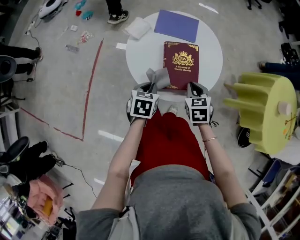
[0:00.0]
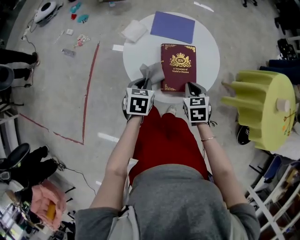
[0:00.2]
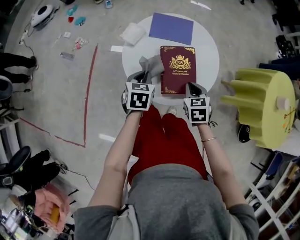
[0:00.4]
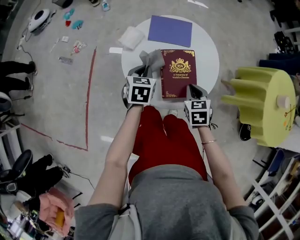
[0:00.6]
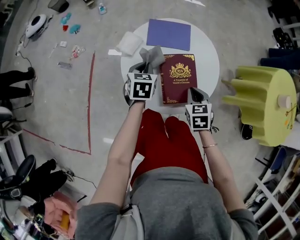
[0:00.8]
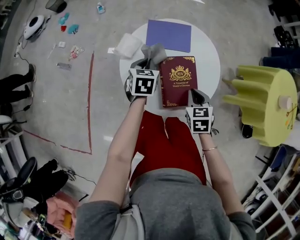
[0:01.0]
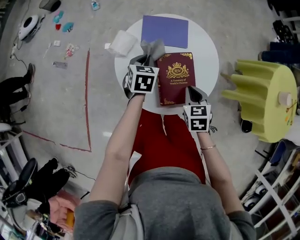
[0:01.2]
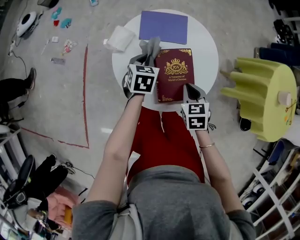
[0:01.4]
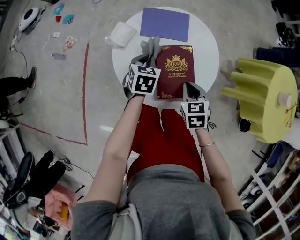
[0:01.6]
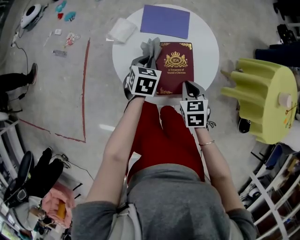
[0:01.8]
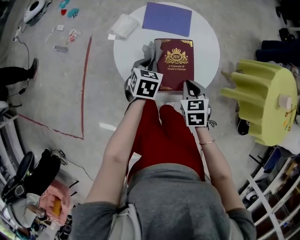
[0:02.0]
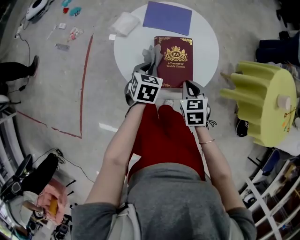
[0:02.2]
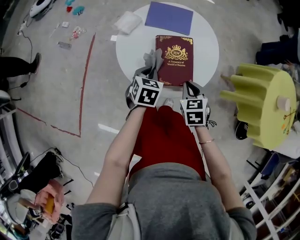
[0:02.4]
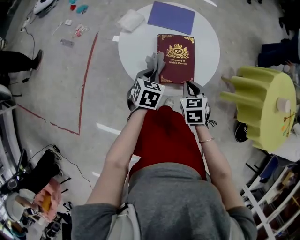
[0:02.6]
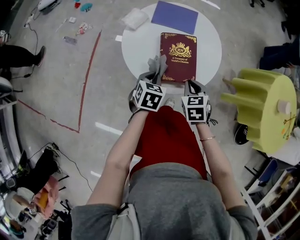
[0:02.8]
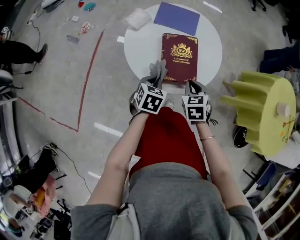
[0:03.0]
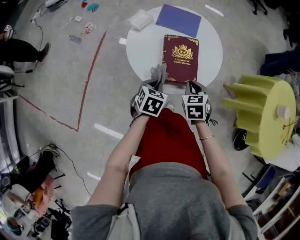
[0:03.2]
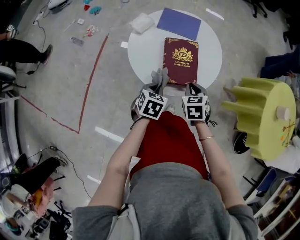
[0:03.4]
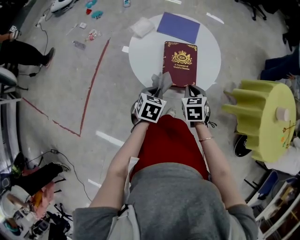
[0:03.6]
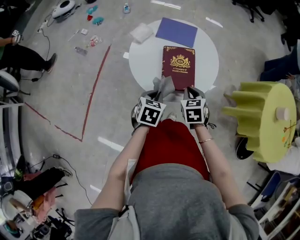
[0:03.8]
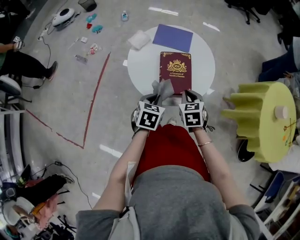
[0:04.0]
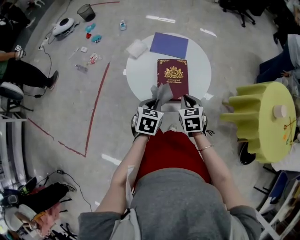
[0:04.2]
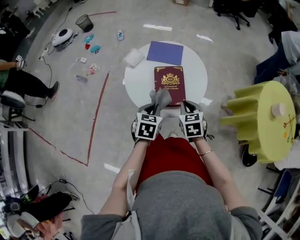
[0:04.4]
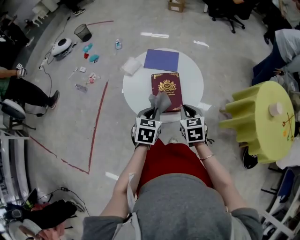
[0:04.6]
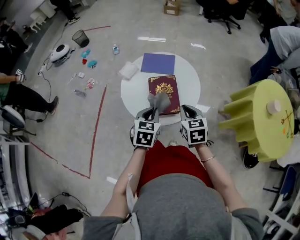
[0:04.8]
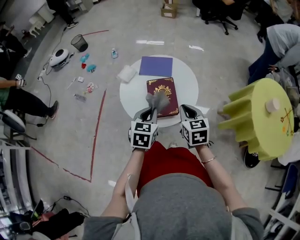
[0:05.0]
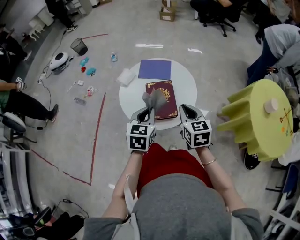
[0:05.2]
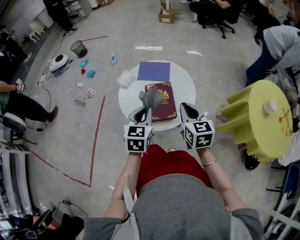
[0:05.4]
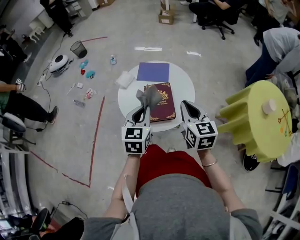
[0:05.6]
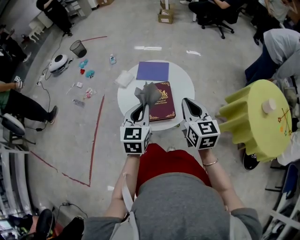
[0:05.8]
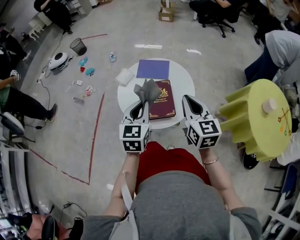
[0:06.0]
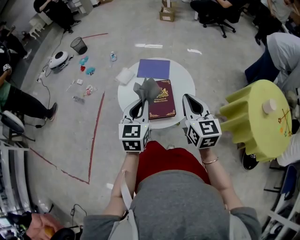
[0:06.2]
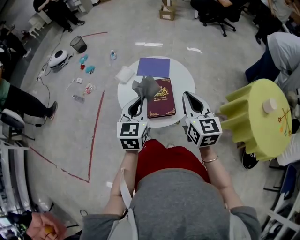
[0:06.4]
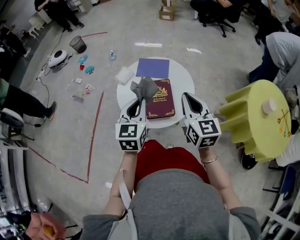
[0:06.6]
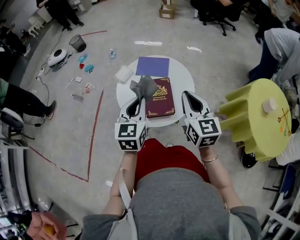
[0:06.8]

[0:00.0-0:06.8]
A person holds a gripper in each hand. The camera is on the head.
0.0 to 1.4 s: The left gripper travels forward by approximately 20 cm.
1.4 to 2.8 s: The left gripper shifts approximately 20 cm backward. The right gripper moves backward, about 5 cm.
2.8 to 4.0 s: The left gripper is displaced upward by approximately 5 cm.
4.0 to 5.4 s: Both grippers move upward, roughly 15 cm. The right gripper turns by about 30 degrees; the left gripper swivels approximately 20 degrees.
5.4 to 6.8 s: The right gripper moves upward, some 5 cm.

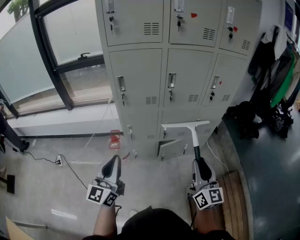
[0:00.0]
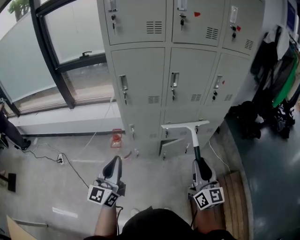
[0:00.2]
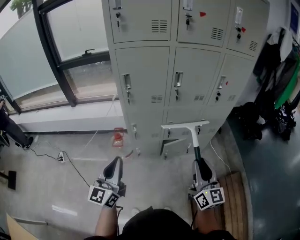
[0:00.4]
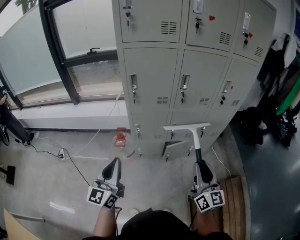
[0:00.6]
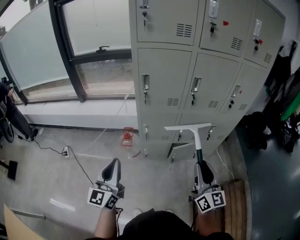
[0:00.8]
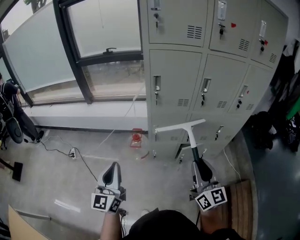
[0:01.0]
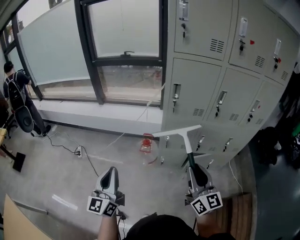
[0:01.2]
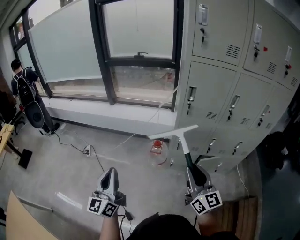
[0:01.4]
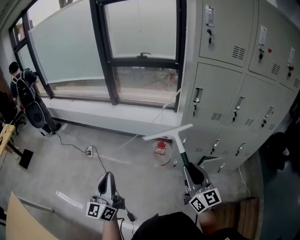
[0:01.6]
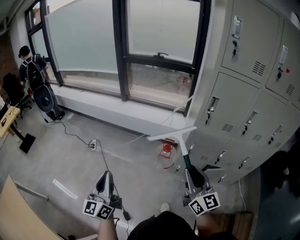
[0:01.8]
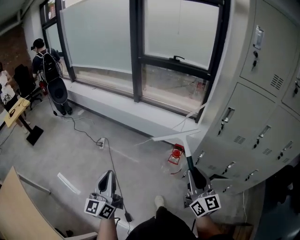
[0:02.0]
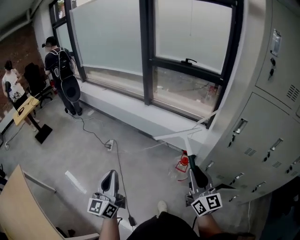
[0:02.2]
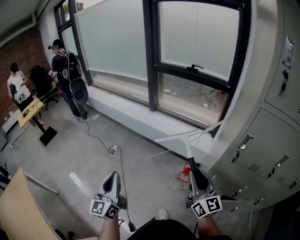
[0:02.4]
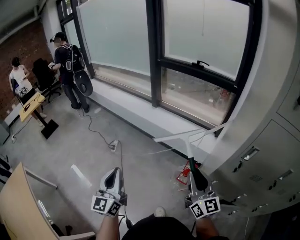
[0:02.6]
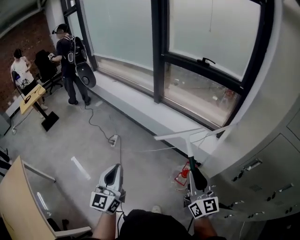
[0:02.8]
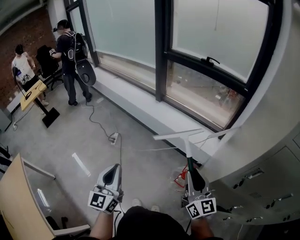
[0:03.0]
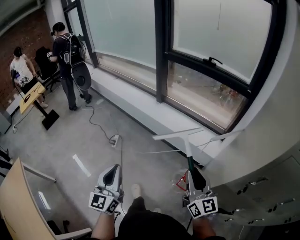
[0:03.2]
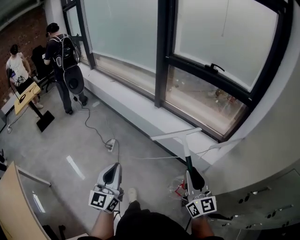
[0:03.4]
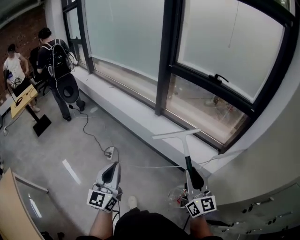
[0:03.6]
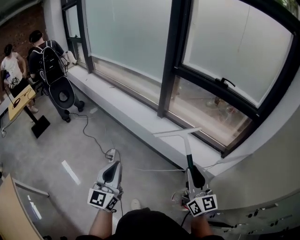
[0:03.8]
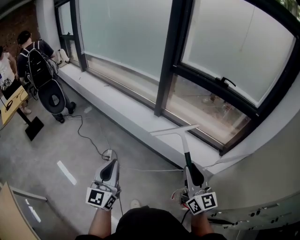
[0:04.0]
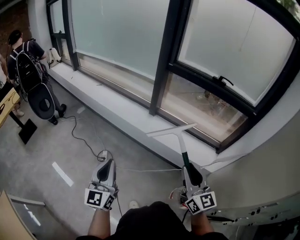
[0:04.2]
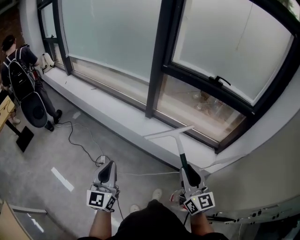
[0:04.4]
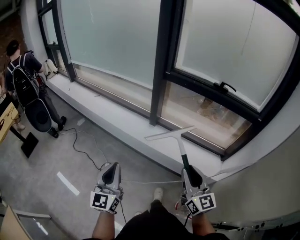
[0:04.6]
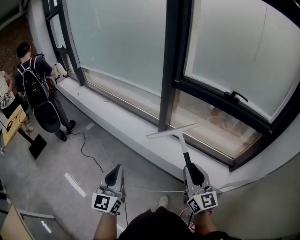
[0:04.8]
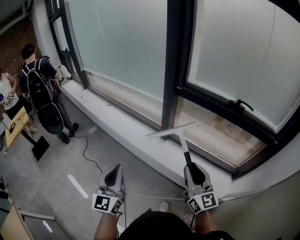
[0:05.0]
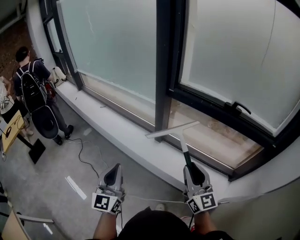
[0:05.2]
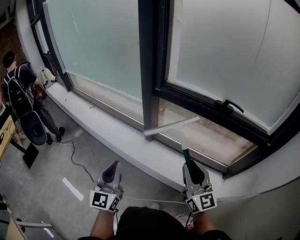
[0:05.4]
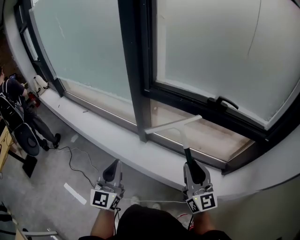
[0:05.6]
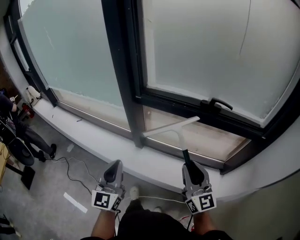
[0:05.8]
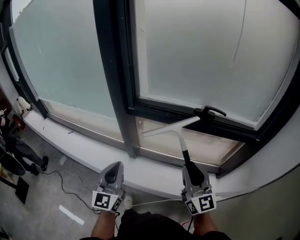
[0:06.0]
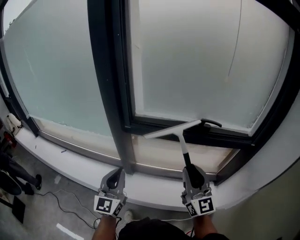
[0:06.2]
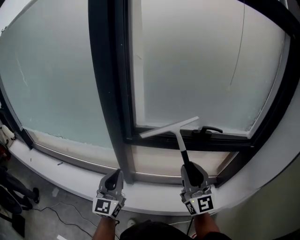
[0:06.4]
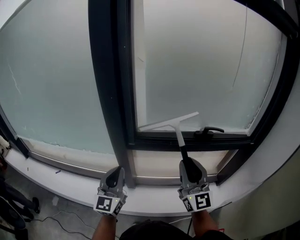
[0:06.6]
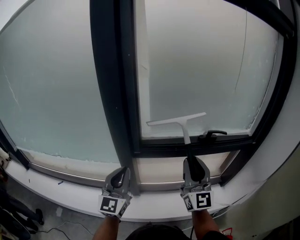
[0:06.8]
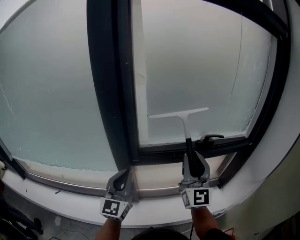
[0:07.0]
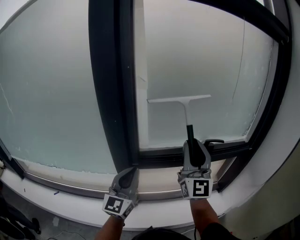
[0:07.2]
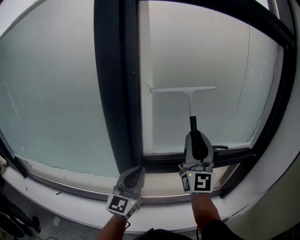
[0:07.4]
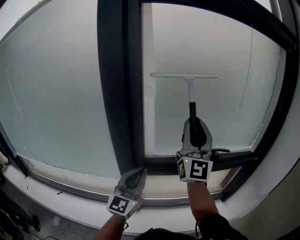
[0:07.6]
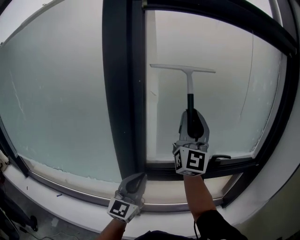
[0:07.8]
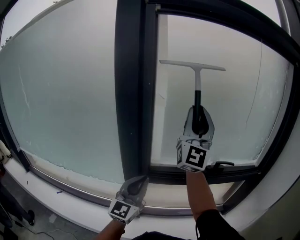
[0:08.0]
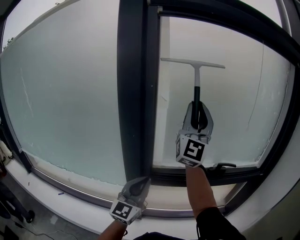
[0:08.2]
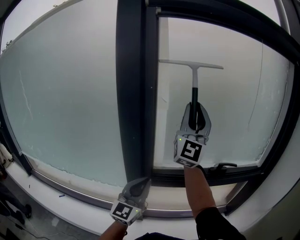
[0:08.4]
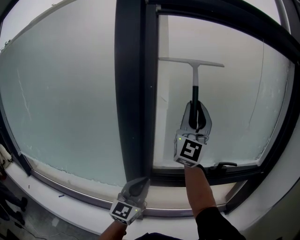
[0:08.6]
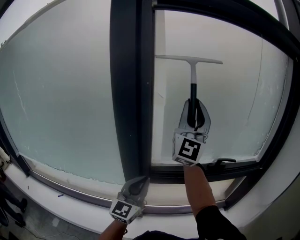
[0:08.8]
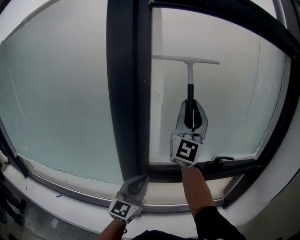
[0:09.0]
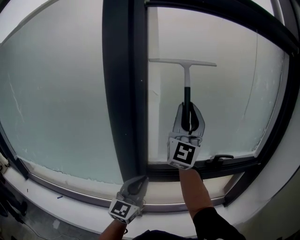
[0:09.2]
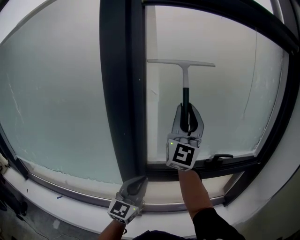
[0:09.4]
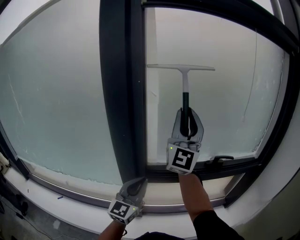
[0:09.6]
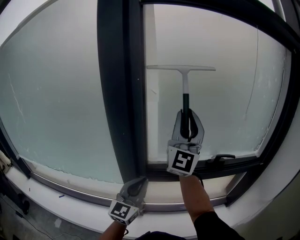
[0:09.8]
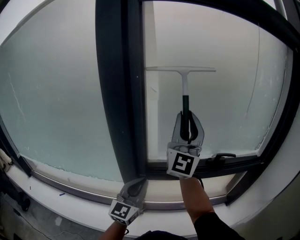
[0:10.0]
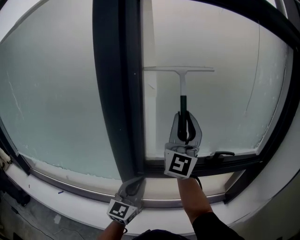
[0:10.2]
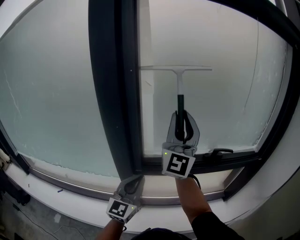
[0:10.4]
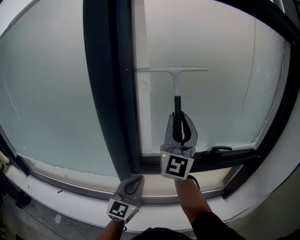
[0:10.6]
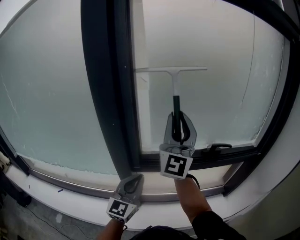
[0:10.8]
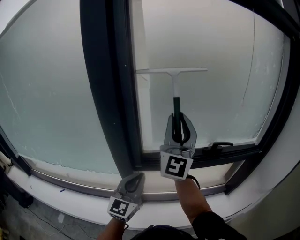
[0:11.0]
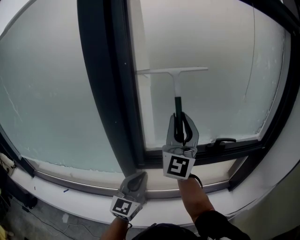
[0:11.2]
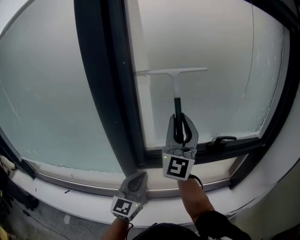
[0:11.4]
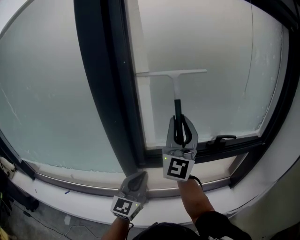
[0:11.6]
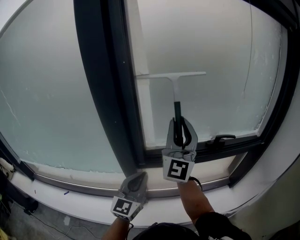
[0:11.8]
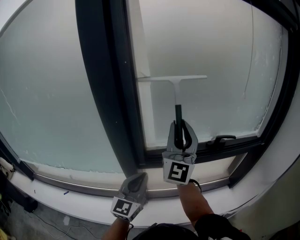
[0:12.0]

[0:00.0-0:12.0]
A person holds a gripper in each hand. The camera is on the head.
0.0 to 1.6 s: The left gripper changes place by about 30 cm, and rotates about 30 degrees, while the right gripper shifts by some 35 cm, and rotates approximately 30 degrees.
1.6 to 3.0 s: The two grippers go some 30 cm forward. The left gripper changes its angle by approximately 30 degrees.
3.0 to 4.4 s: The two grippers go approximately 35 cm forward and to the left.
4.4 to 6.0 s: The two grippers go approximately 40 cm forward and to the right.
6.0 to 7.6 s: The right gripper is displaced upward by some 30 cm, and tips its fingers upward by about 30 degrees. The left gripper changes place by roughly 25 cm, and rotates about 30 degrees.
7.6 to 9.0 s: The right gripper moves upward, some 5 cm.
9.0 to 10.4 s: The right gripper moves downward, some 5 cm.
10.4 to 12.0 s: The right gripper travels downward by approximately 5 cm.

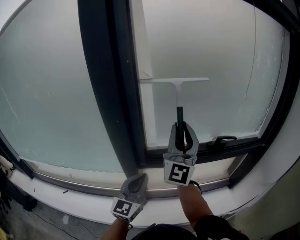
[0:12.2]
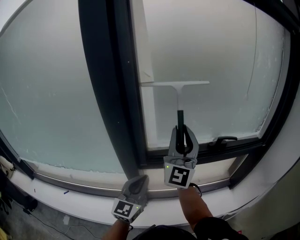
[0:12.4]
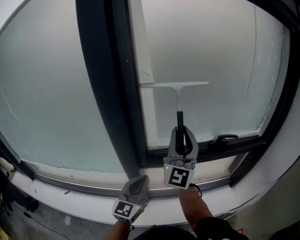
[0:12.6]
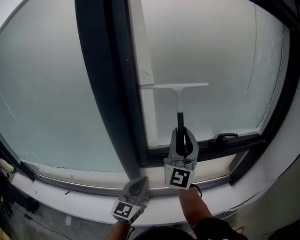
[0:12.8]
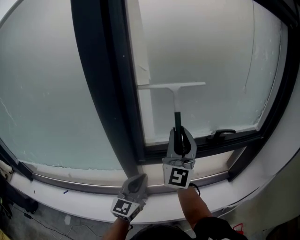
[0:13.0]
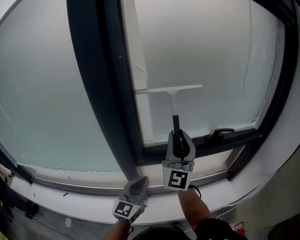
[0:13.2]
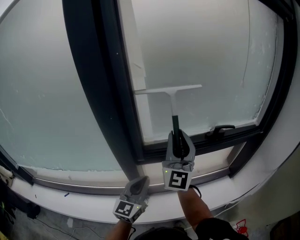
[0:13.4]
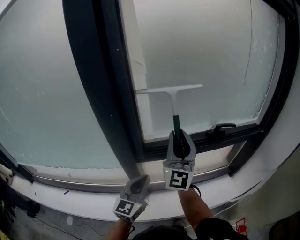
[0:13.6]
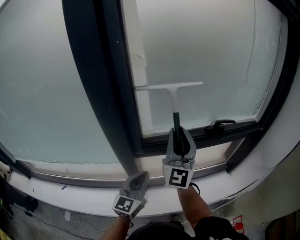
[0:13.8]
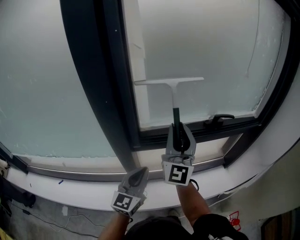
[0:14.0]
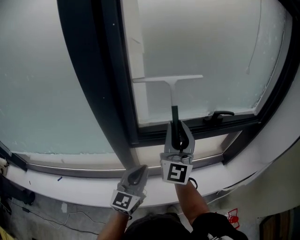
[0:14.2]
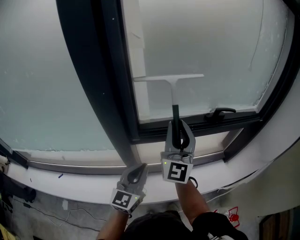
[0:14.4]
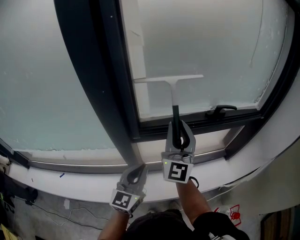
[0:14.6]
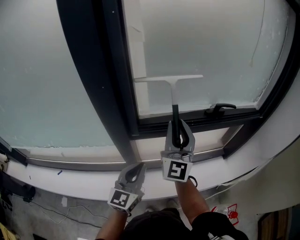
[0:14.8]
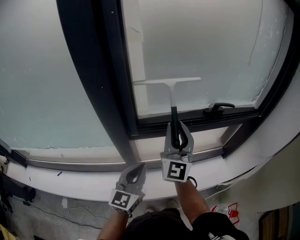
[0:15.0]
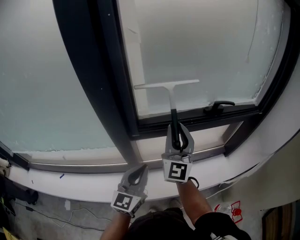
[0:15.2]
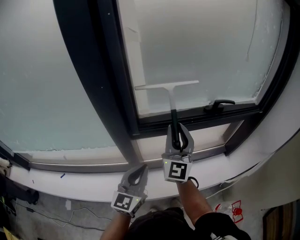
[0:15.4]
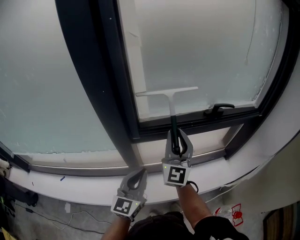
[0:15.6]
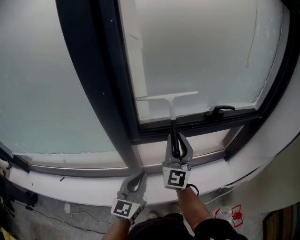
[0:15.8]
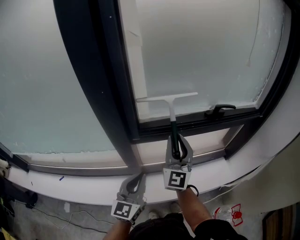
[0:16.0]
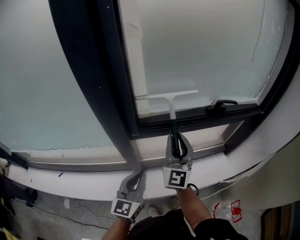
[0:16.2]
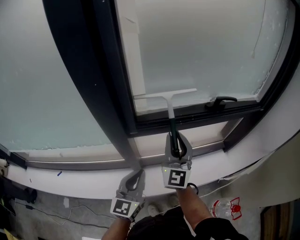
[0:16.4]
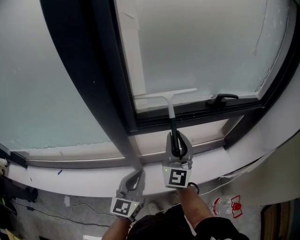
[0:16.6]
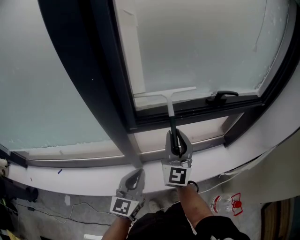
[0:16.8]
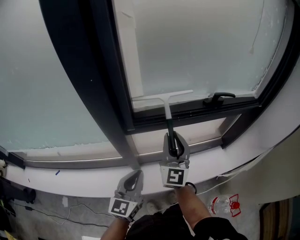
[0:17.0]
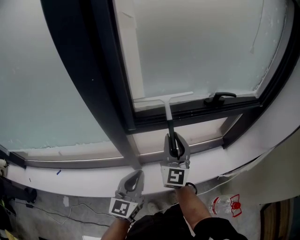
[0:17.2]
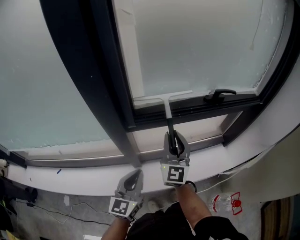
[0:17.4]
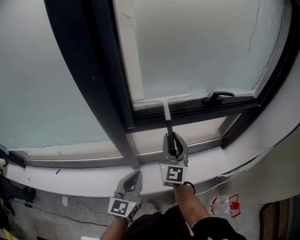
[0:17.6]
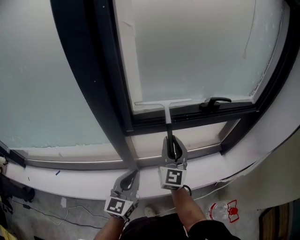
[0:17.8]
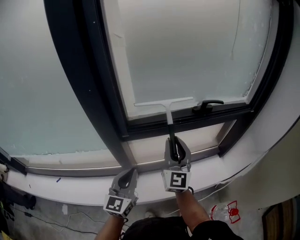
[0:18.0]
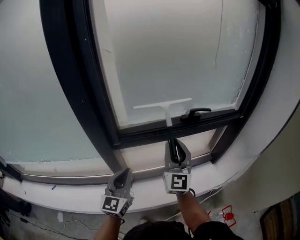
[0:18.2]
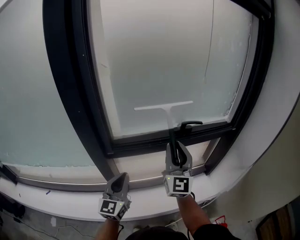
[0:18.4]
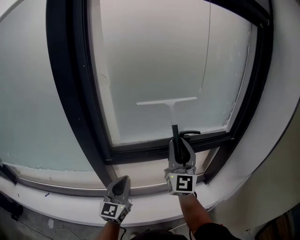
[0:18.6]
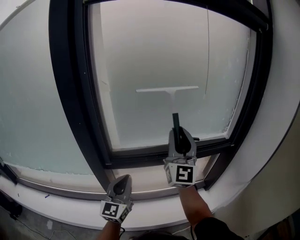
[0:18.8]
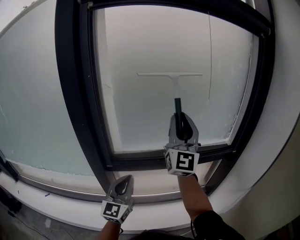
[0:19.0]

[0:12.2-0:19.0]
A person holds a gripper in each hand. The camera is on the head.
12.2 to 13.6 s: The left gripper changes place by about 5 cm. The right gripper shifts about 5 cm downward.
13.6 to 15.0 s: The right gripper is displaced downward by some 5 cm.
15.0 to 16.2 s: The right gripper moves downward, roughly 5 cm.
16.2 to 17.6 s: The right gripper is displaced downward by roughly 5 cm.
17.6 to 19.0 s: The left gripper goes some 20 cm upward, to the right and forward, and changes its angle by approximately 20 degrees; the right gripper goes roughly 35 cm upward and to the right, and tilts its fingers approximately 30 degrees upward.
